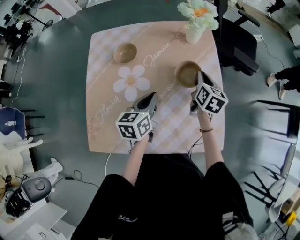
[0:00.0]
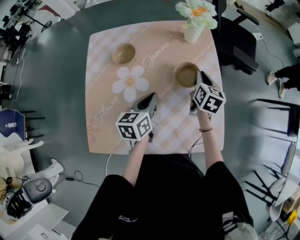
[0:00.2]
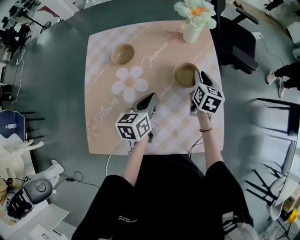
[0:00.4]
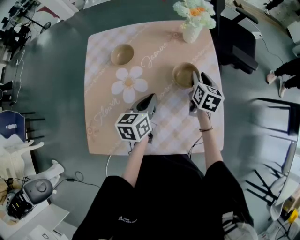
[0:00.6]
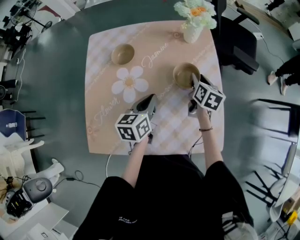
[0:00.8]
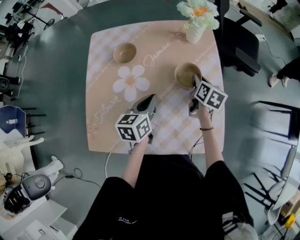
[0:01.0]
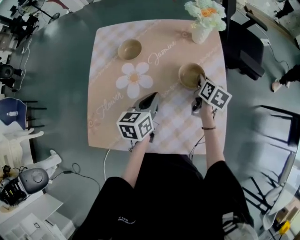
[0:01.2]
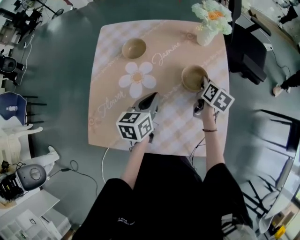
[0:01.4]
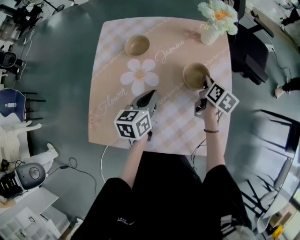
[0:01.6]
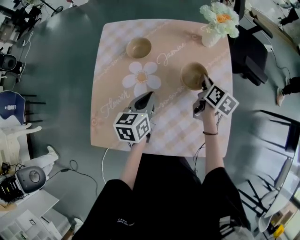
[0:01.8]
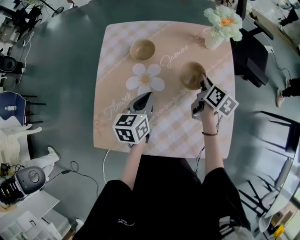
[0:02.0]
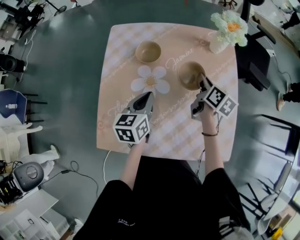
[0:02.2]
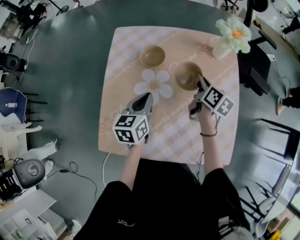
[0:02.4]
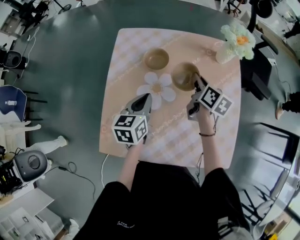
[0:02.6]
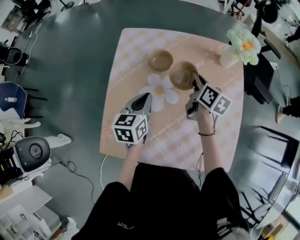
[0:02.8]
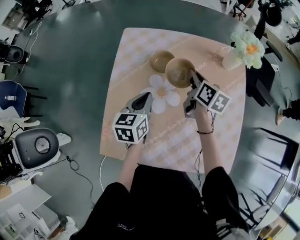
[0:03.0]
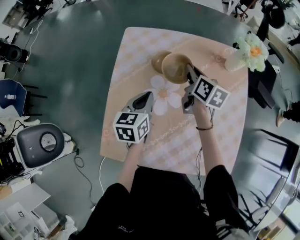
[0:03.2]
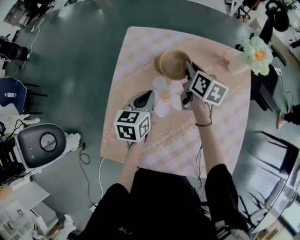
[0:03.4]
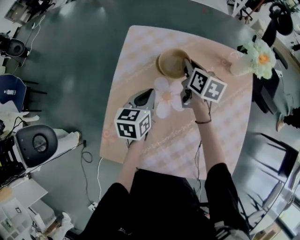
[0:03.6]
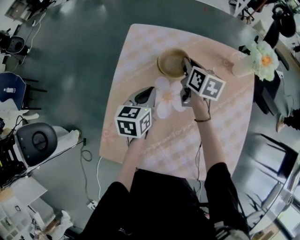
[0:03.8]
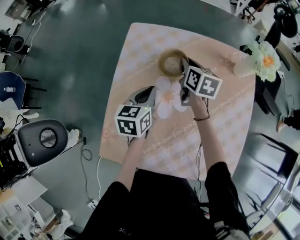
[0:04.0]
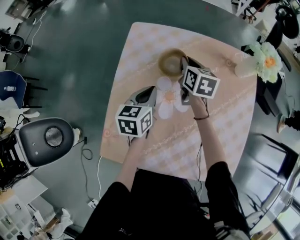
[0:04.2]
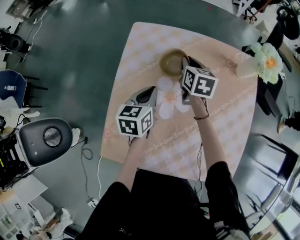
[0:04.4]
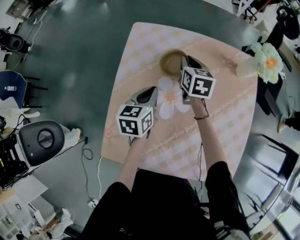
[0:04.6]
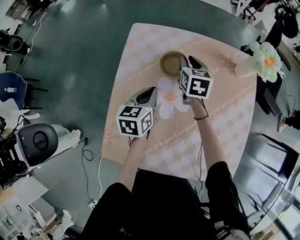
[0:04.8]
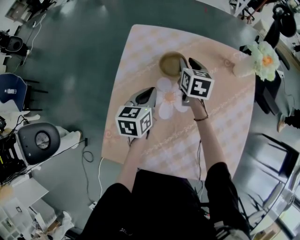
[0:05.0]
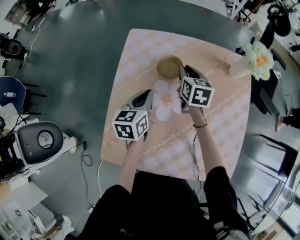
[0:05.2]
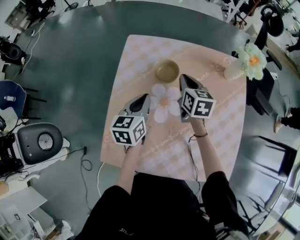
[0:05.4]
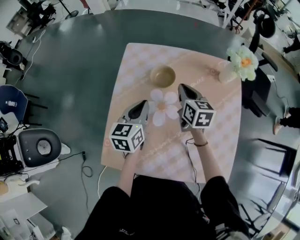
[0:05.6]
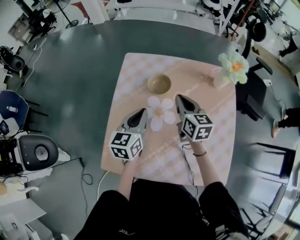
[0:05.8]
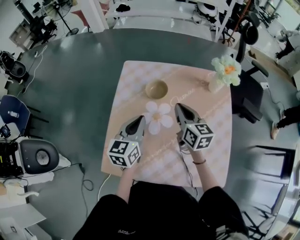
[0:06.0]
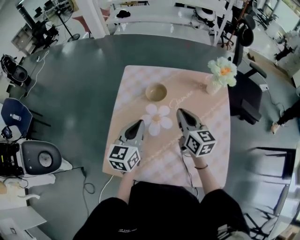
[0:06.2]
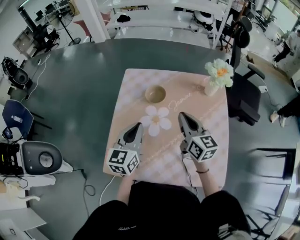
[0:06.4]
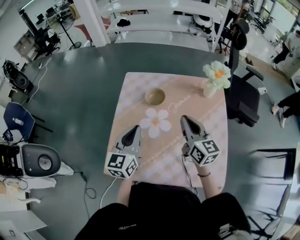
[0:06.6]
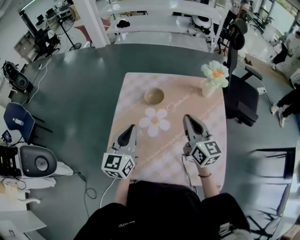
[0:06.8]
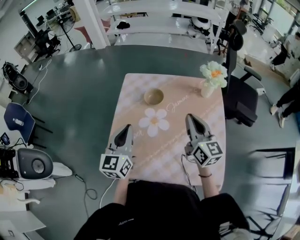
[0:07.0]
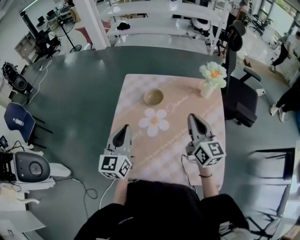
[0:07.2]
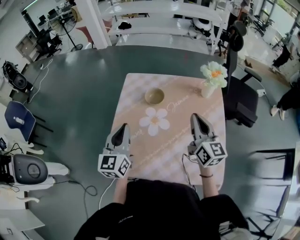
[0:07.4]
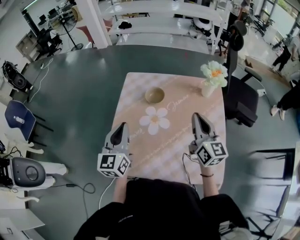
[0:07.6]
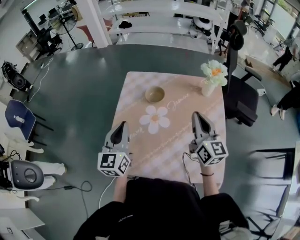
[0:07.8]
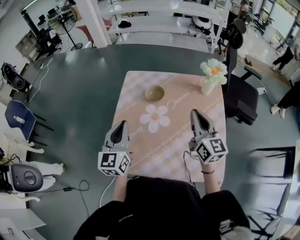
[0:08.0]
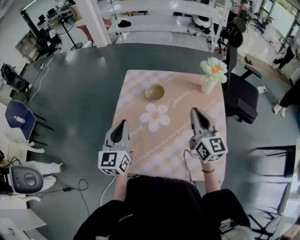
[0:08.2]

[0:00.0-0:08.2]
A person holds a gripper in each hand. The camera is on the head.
0:00.0 to 0:01.6: The right gripper opens, then closes once more.
0:01.6 to 0:03.2: The left gripper moves to the left and forward, roughly 15 cm; the right gripper goes approximately 25 cm to the left and forward, and swivels about 20 degrees.
0:03.2 to 0:05.0: The right gripper changes place by some 10 cm, rotates roughly 20 degrees, and opens its fingers.
0:05.0 to 0:06.6: The left gripper is displaced upward and backward by some 20 cm, and changes its angle by about 30 degrees. The right gripper heads backward and upward, covering roughly 25 cm, turns by some 30 degrees, and closes up.
0:06.6 to 0:08.2: The right gripper shifts about 5 cm upward. The left gripper goes approximately 5 cm to the left.

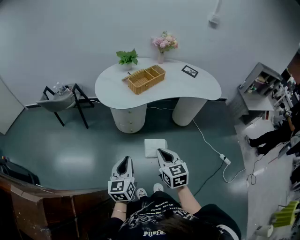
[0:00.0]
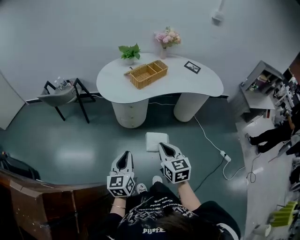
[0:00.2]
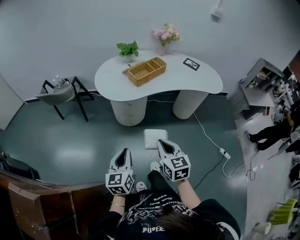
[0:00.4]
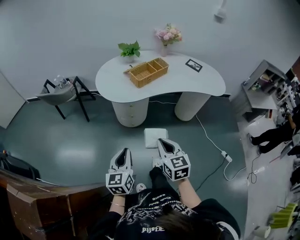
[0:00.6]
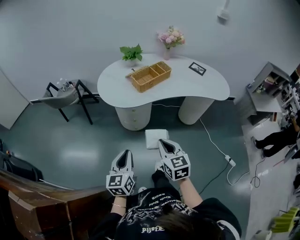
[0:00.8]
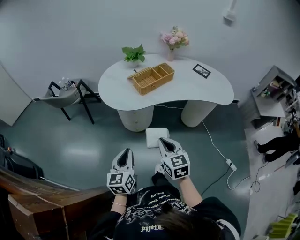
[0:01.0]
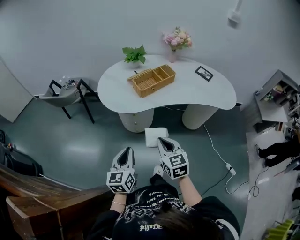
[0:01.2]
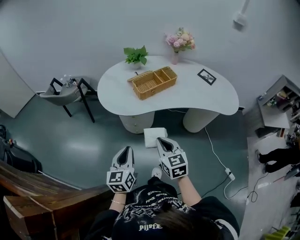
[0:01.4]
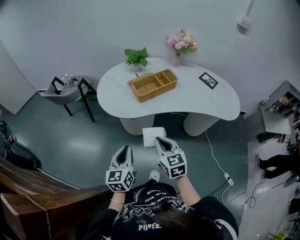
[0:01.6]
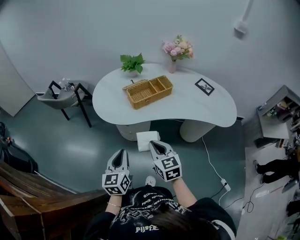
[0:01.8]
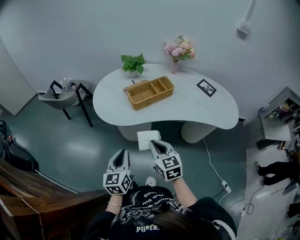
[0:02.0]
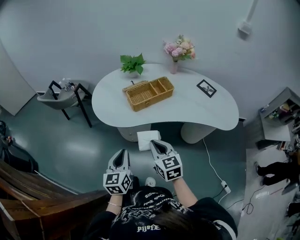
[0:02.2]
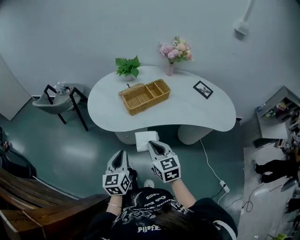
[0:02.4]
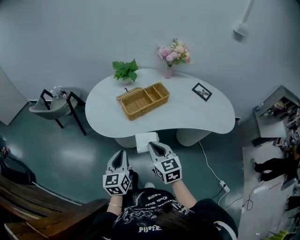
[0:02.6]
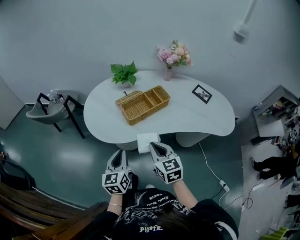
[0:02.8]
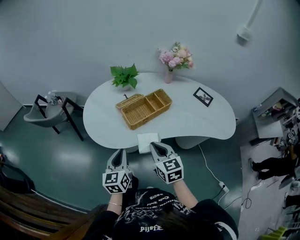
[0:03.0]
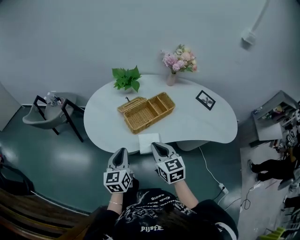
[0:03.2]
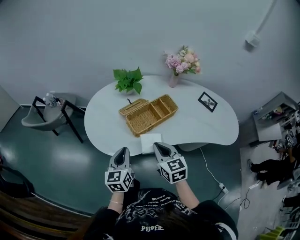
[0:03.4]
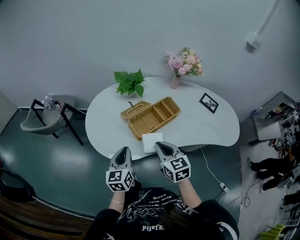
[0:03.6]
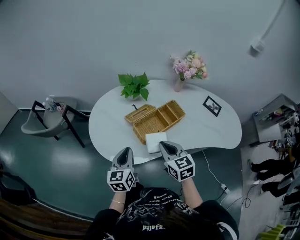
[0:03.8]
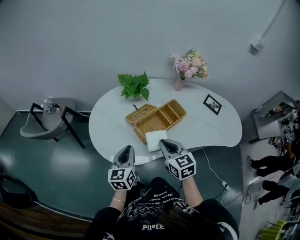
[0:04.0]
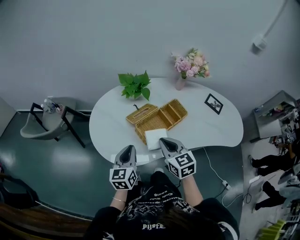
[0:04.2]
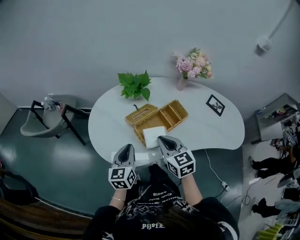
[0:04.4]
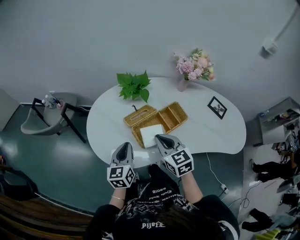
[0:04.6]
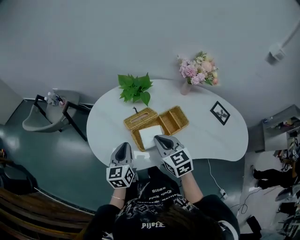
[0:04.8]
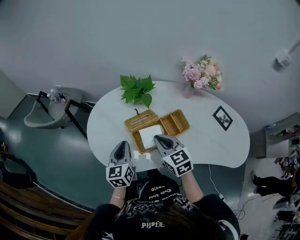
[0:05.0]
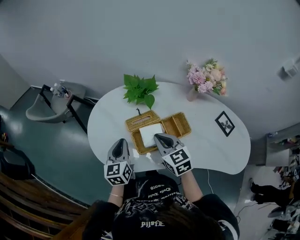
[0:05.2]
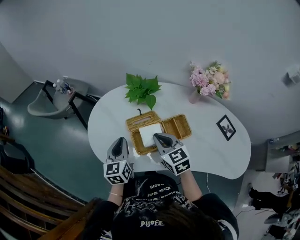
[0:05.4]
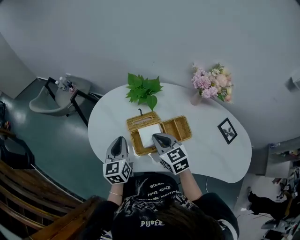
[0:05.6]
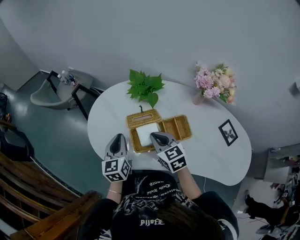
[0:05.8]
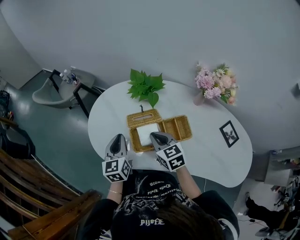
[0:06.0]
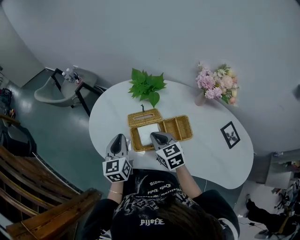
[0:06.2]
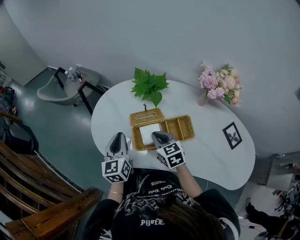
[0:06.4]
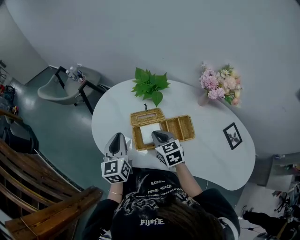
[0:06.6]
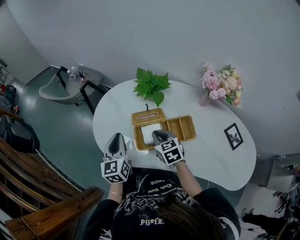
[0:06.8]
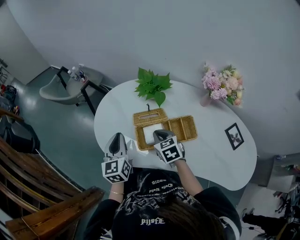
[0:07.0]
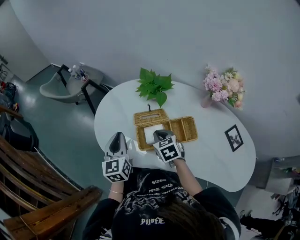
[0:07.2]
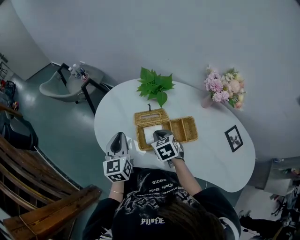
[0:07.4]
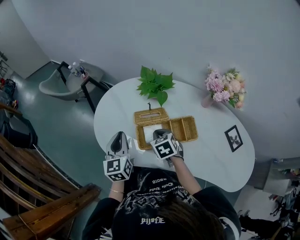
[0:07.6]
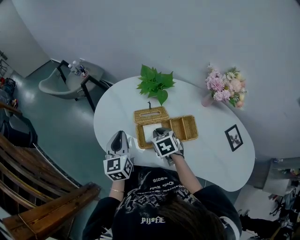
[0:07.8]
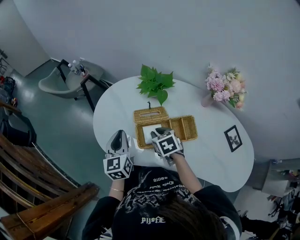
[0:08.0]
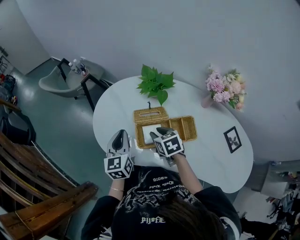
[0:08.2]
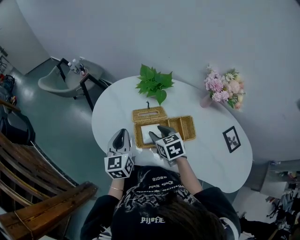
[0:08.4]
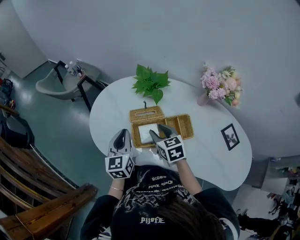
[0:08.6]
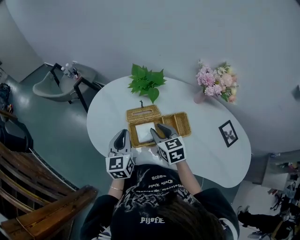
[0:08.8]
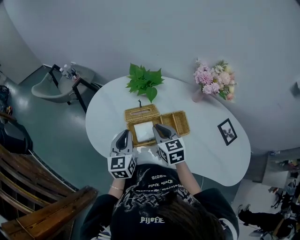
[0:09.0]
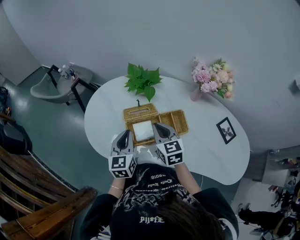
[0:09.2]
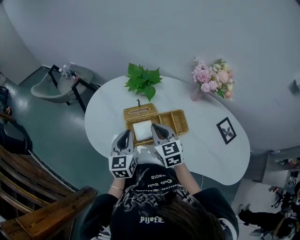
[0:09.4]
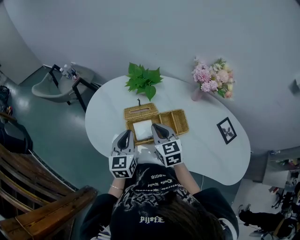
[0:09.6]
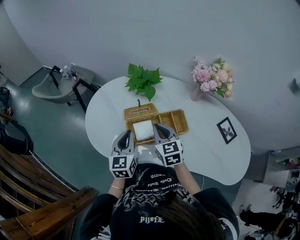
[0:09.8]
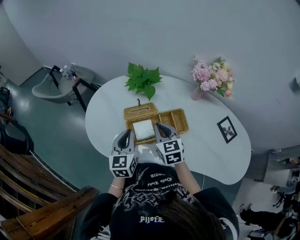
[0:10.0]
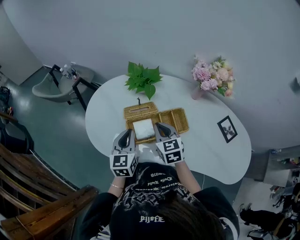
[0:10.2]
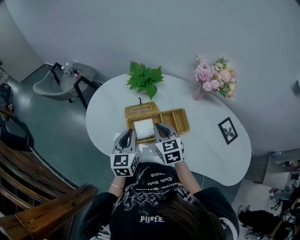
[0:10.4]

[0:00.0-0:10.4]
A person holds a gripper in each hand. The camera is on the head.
0:00.0 to 0:01.4: The left gripper goes some 20 cm forward and to the right. Meanwhile the right gripper goes some 20 cm forward.
0:01.4 to 0:03.0: The grippers both shift forward by about 20 cm.
0:03.0 to 0:04.4: Both grippers travel together forward, roughly 15 cm.
0:04.4 to 0:06.0: The right gripper shifts by some 10 cm, and changes its angle by approximately 30 degrees; the left gripper ends up roughly 5 cm from where it was, and changes its angle by approximately 30 degrees.
0:06.0 to 0:07.4: The right gripper is displaced downward by roughly 5 cm.
0:07.4 to 0:09.0: The left gripper shifts approximately 5 cm to the right; the right gripper heads upward, covering some 5 cm, swivels about 20 degrees, and opens, then closes again.
0:09.0 to 0:10.4: The grippers move only a little.

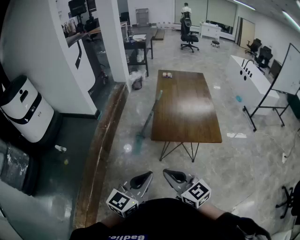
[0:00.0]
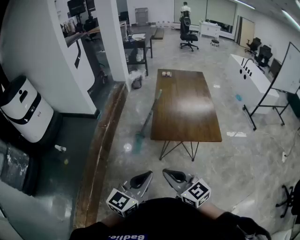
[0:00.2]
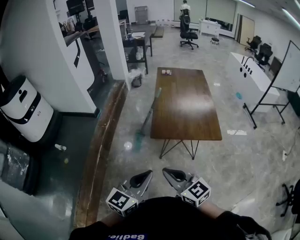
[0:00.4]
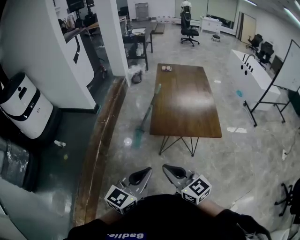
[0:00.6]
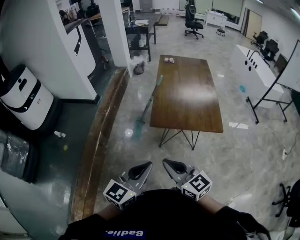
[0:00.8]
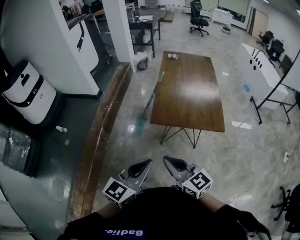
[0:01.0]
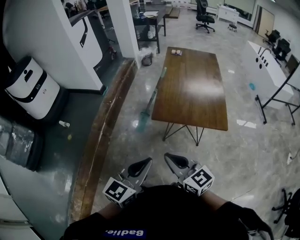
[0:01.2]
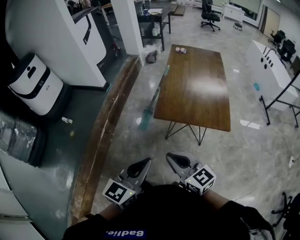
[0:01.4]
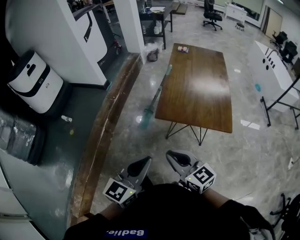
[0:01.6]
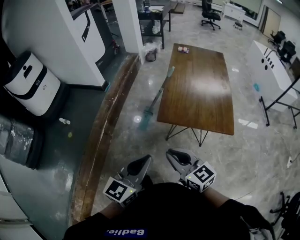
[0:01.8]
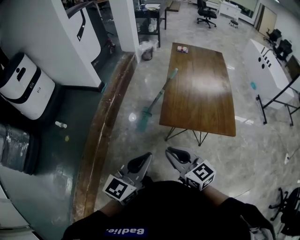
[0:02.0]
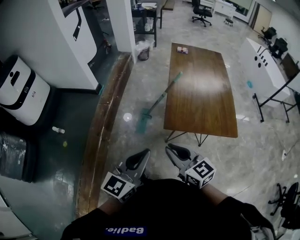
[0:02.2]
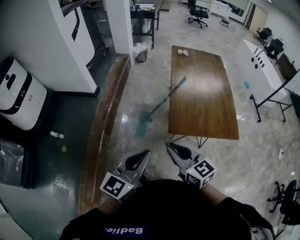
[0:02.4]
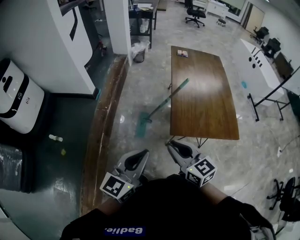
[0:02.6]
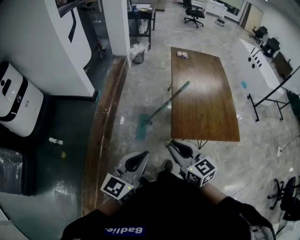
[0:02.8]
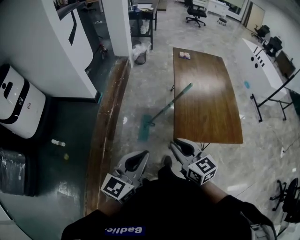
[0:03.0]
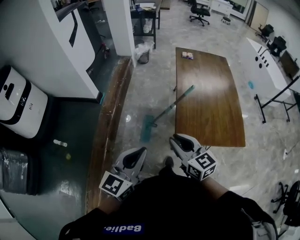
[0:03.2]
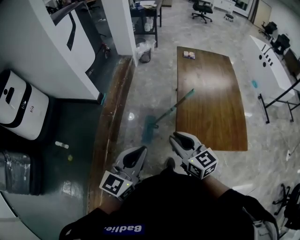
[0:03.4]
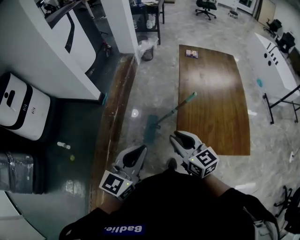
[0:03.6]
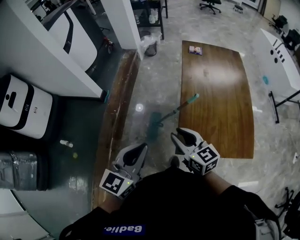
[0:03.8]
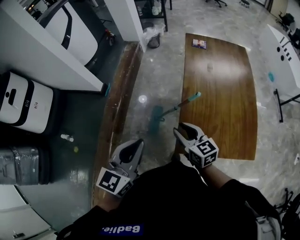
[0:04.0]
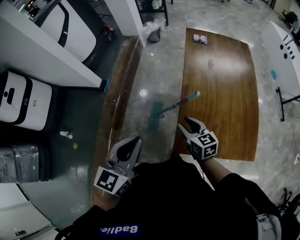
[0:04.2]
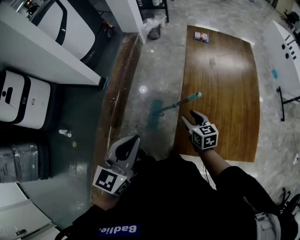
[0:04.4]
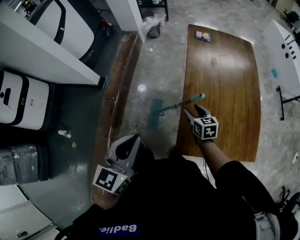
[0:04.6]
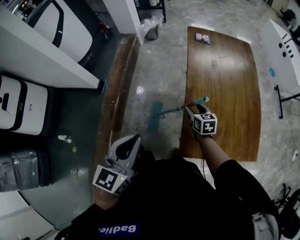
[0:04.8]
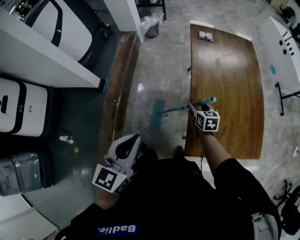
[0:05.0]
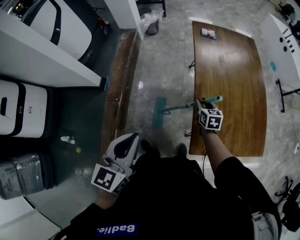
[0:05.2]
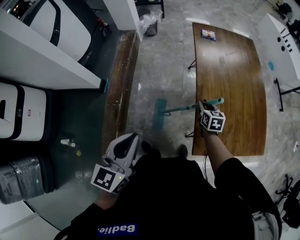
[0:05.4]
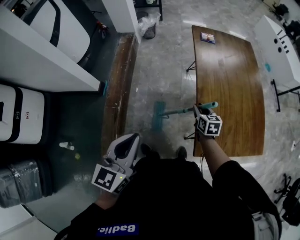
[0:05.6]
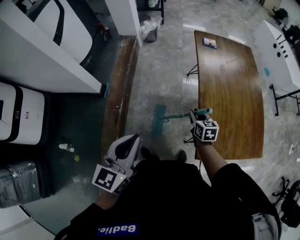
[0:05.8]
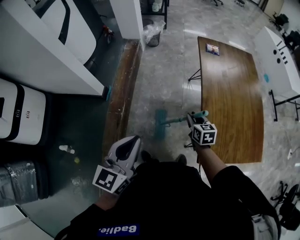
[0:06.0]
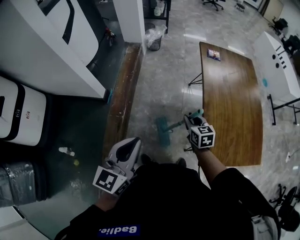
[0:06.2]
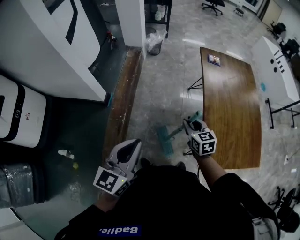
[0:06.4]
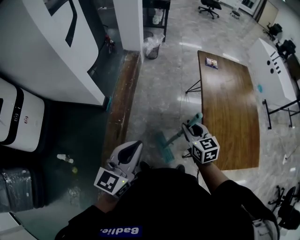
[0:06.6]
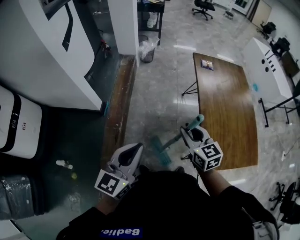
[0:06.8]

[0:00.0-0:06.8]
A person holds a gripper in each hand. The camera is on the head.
0:00.0 to 0:01.4: The grippers both shift to the right by about 5 cm.
0:01.4 to 0:02.8: The grippers both shift forward and to the left by about 30 cm.
0:02.8 to 0:04.0: The right gripper shifts some 25 cm forward and downward, while the left gripper travels forward by roughly 20 cm.
0:04.0 to 0:05.4: The left gripper is displaced to the left and forward by about 15 cm. Meanwhile the right gripper heads forward and downward, covering about 25 cm, and changes its angle by some 40 degrees.
0:05.4 to 0:06.8: The right gripper goes approximately 30 cm to the left and upward, and swivels approximately 30 degrees, while the left gripper goes approximately 10 cm to the left.
